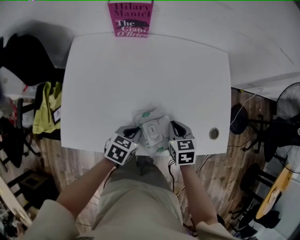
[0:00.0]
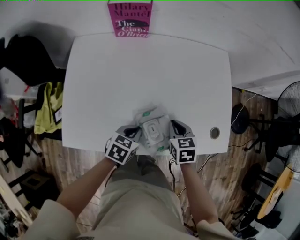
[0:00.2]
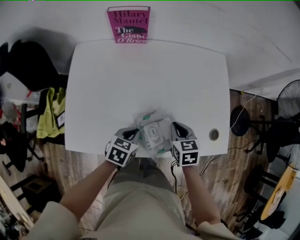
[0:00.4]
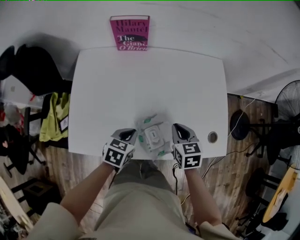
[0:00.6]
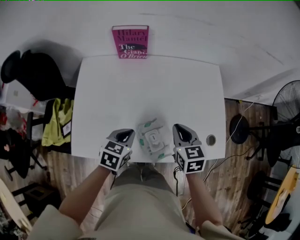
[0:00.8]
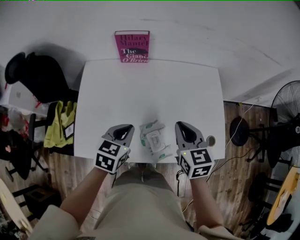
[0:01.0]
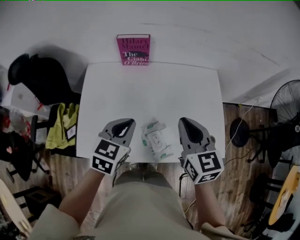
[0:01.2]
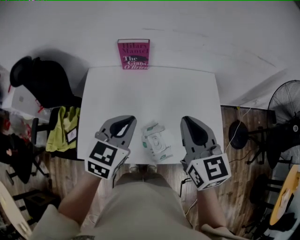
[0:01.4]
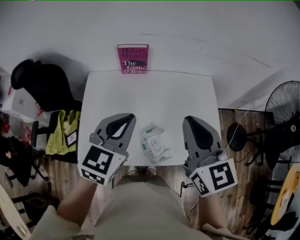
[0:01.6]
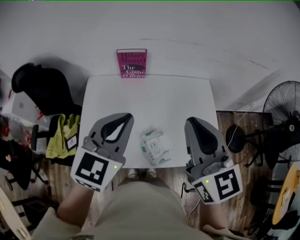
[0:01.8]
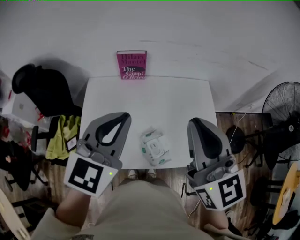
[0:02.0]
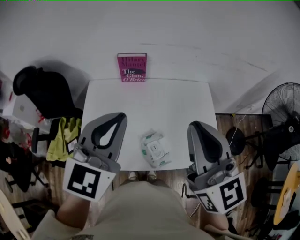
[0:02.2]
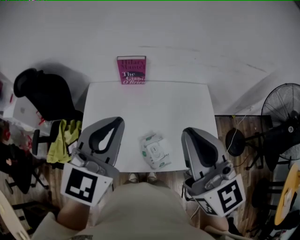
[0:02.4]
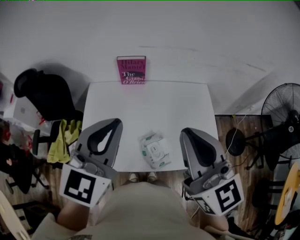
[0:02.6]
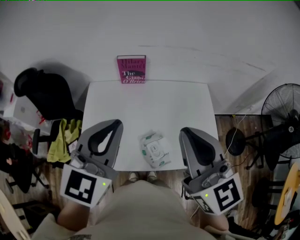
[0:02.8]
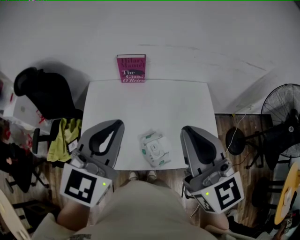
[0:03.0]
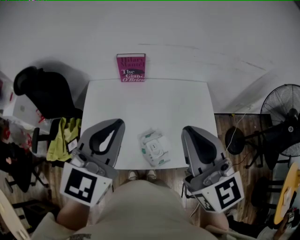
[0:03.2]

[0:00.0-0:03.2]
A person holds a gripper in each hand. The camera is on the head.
0:00.0 to 0:01.6: Both grippers move upward, roughly 35 cm. The left gripper tilts its fingers some 30 degrees upward. The right gripper points its fingers about 40 degrees further upward.
0:01.6 to 0:03.2: The grippers both shift upward by roughly 10 cm.

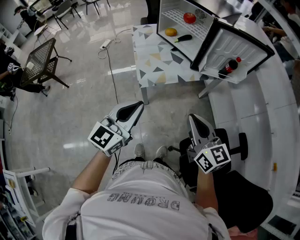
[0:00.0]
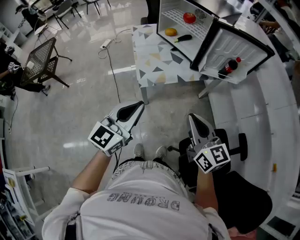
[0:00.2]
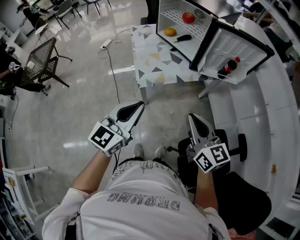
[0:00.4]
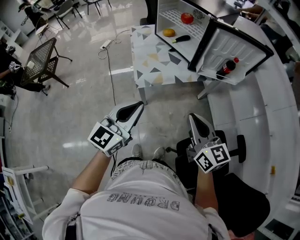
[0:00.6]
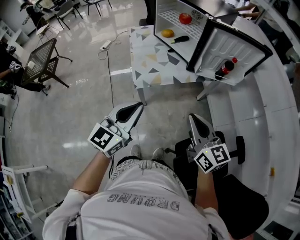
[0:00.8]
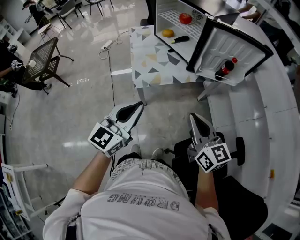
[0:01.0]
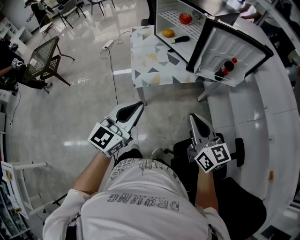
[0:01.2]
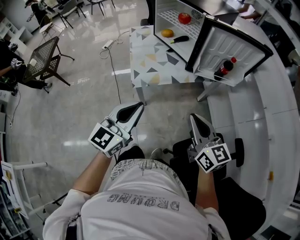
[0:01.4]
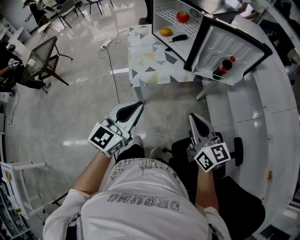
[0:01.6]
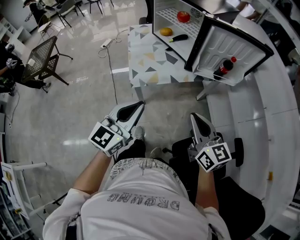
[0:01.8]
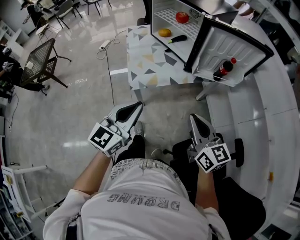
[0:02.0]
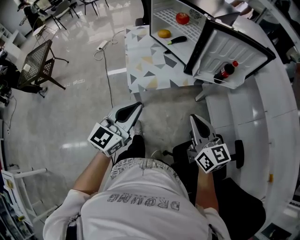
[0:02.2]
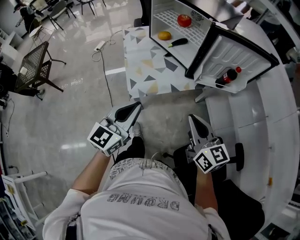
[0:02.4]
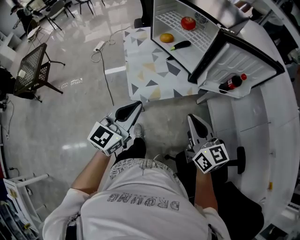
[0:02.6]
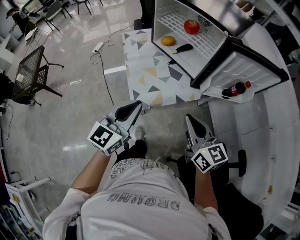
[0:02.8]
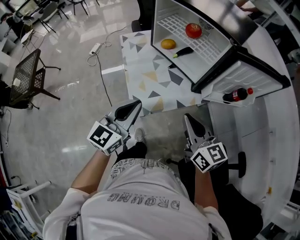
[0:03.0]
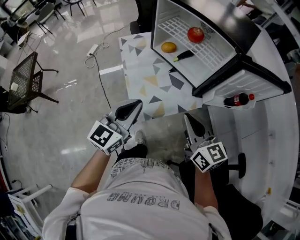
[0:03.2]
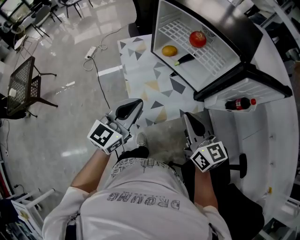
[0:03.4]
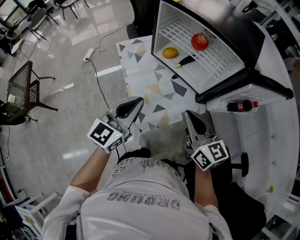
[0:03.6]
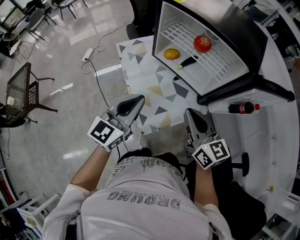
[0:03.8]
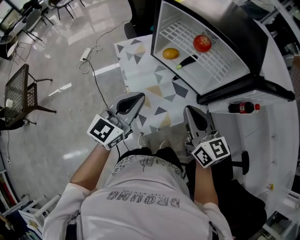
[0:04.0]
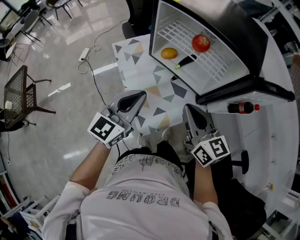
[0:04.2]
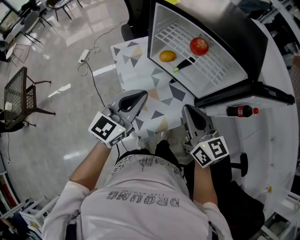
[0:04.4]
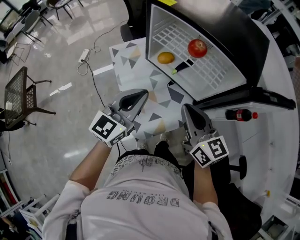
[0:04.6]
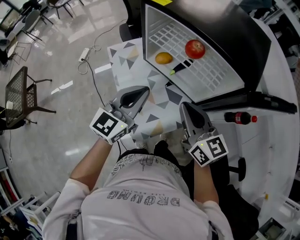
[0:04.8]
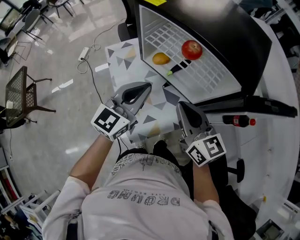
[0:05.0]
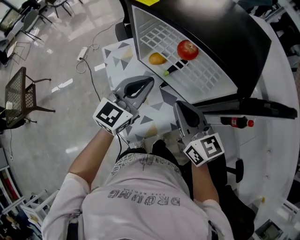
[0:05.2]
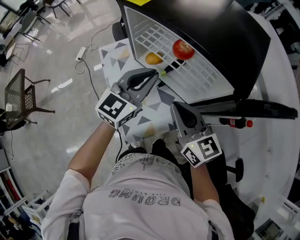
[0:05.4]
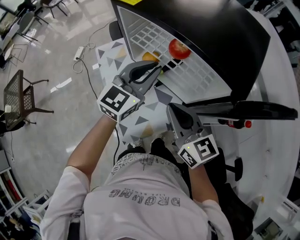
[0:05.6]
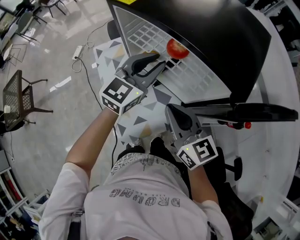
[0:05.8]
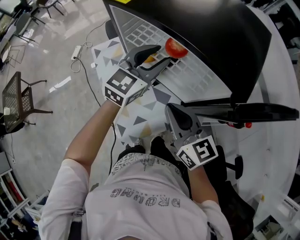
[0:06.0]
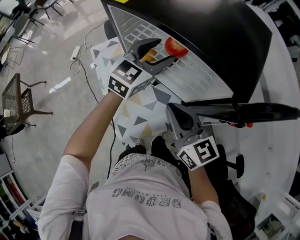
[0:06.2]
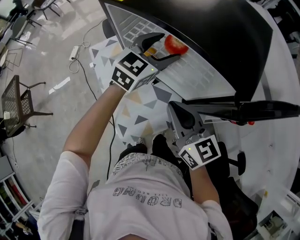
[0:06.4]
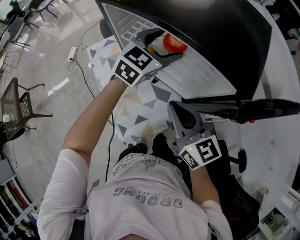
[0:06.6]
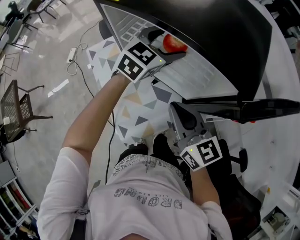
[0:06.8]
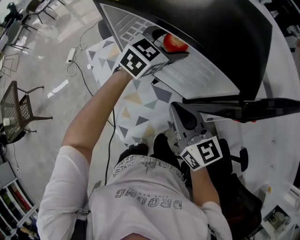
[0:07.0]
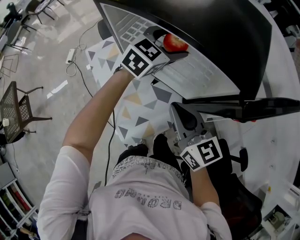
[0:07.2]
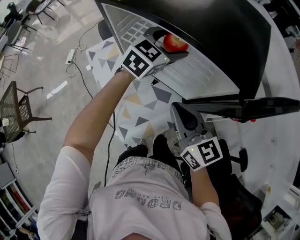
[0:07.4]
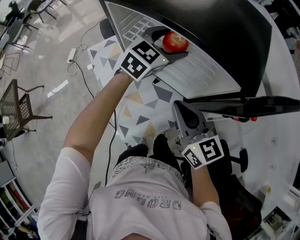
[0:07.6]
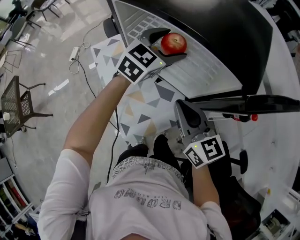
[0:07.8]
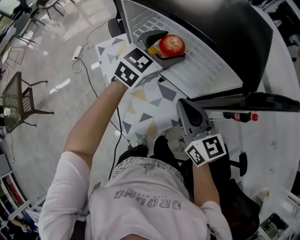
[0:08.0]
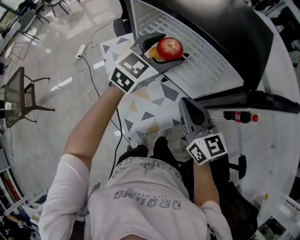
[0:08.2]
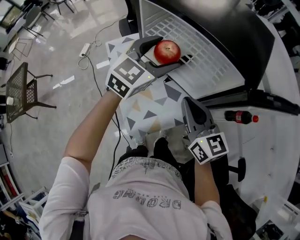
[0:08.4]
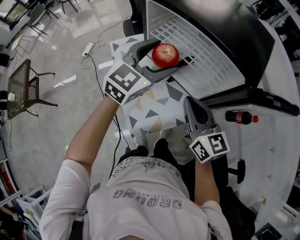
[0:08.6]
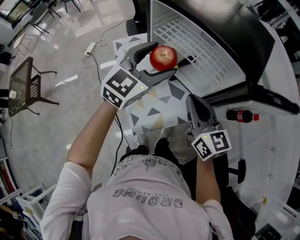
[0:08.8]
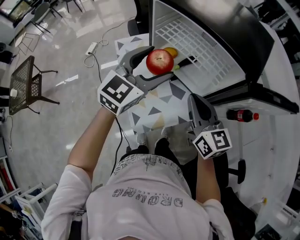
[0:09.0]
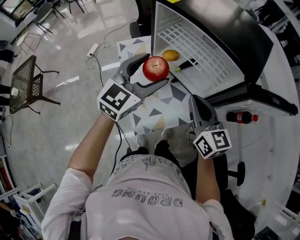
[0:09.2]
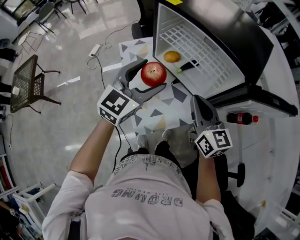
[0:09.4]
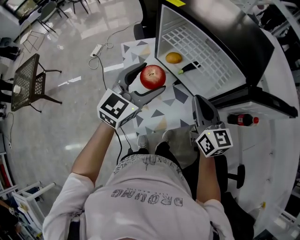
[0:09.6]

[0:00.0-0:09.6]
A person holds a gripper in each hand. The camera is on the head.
0:00.0 to 0:01.6: The grippers both shift to the right by about 5 cm.
0:01.6 to 0:03.2: Both grippers move forward and to the left, about 25 cm.
0:03.2 to 0:04.8: Both grippers move forward, about 15 cm.
0:04.8 to 0:06.4: The left gripper heads forward and to the right, covering approximately 25 cm, and opens its fingers.
0:06.4 to 0:08.0: The grippers move only a little.
0:08.0 to 0:09.6: The left gripper travels backward and to the left by roughly 20 cm.

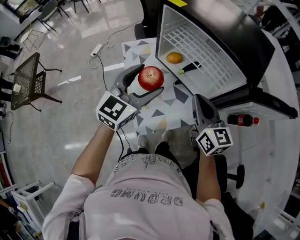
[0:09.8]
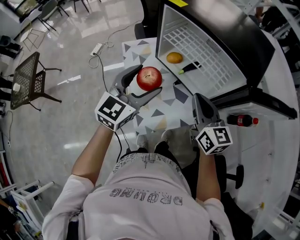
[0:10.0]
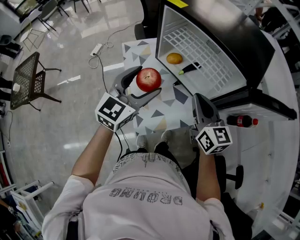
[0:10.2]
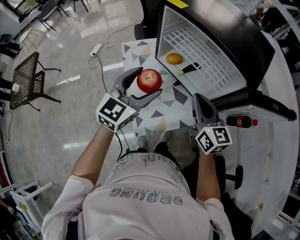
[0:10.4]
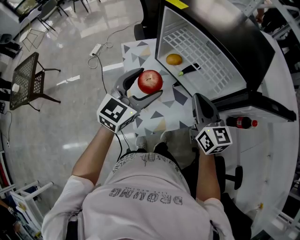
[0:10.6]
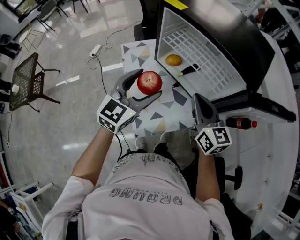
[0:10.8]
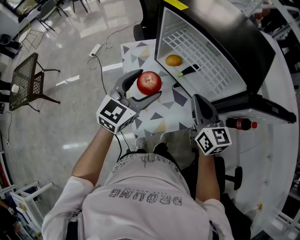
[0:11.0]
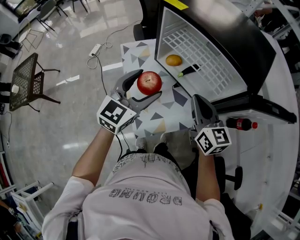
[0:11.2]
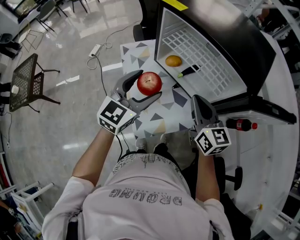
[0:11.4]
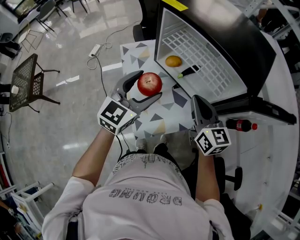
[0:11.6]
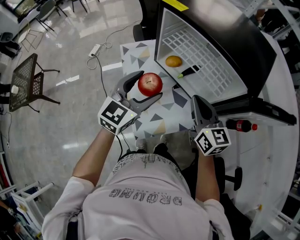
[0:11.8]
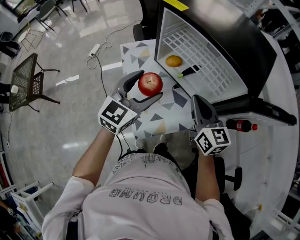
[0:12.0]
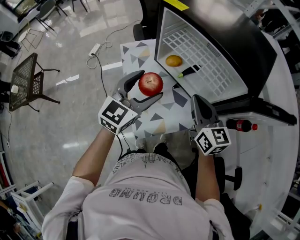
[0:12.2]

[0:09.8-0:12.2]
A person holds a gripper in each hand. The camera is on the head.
0:09.8 to 0:11.0: The grippers move only a little.
0:11.0 to 0:12.2: The two grippers keep their place.

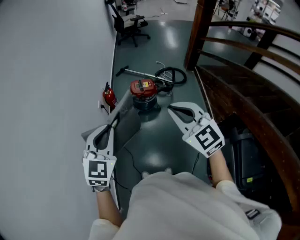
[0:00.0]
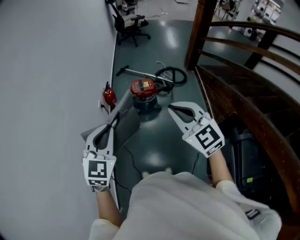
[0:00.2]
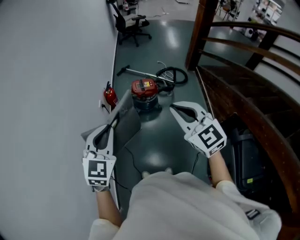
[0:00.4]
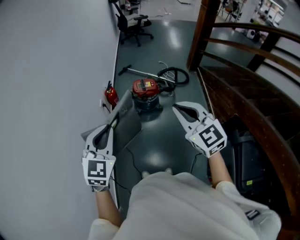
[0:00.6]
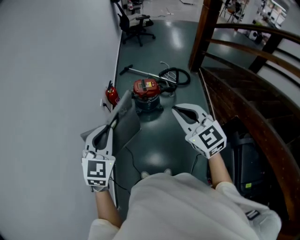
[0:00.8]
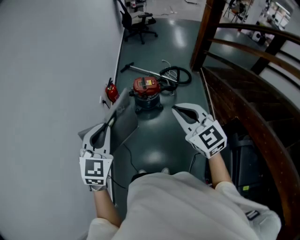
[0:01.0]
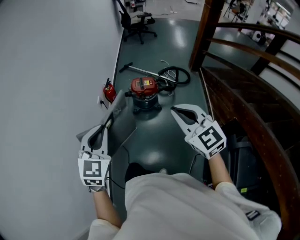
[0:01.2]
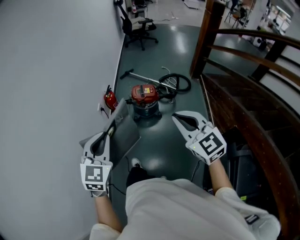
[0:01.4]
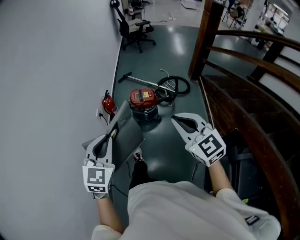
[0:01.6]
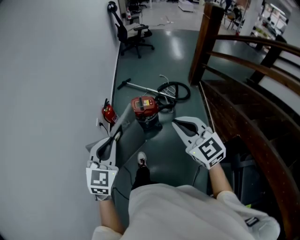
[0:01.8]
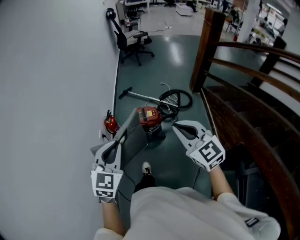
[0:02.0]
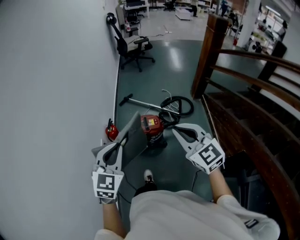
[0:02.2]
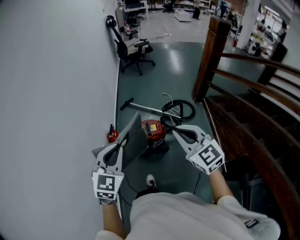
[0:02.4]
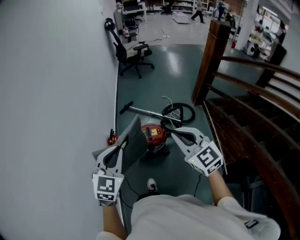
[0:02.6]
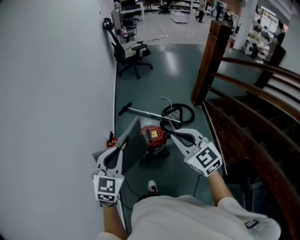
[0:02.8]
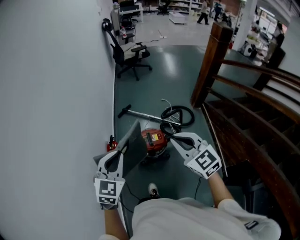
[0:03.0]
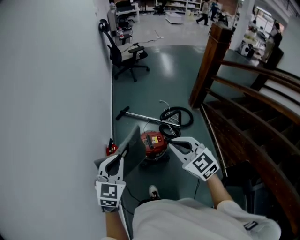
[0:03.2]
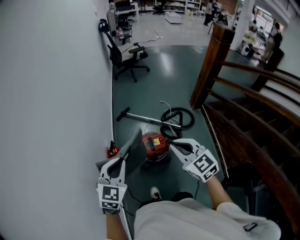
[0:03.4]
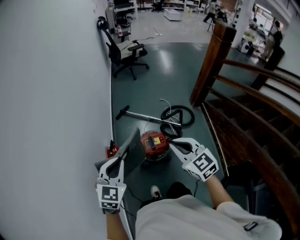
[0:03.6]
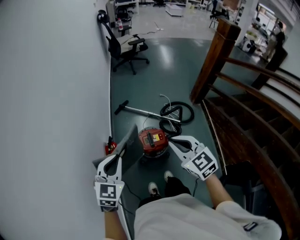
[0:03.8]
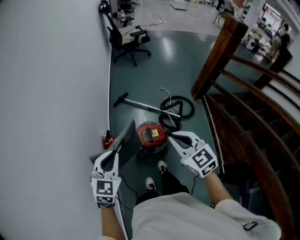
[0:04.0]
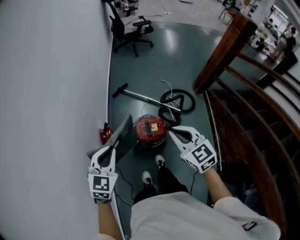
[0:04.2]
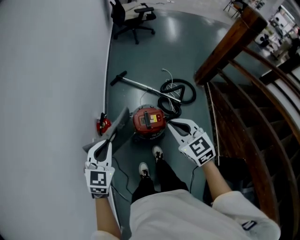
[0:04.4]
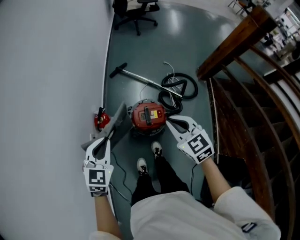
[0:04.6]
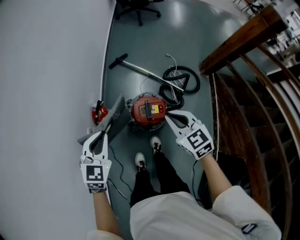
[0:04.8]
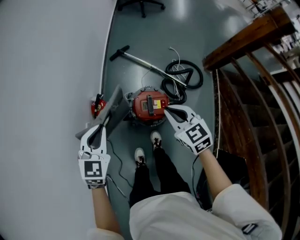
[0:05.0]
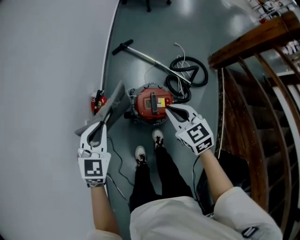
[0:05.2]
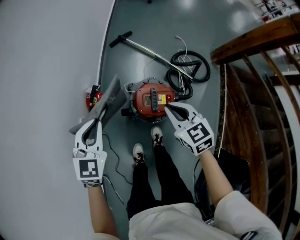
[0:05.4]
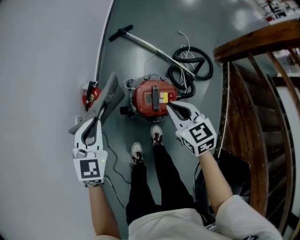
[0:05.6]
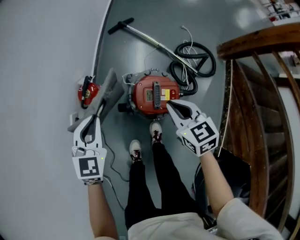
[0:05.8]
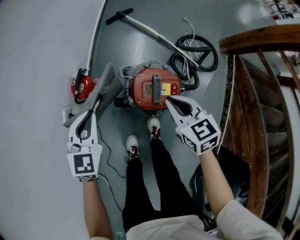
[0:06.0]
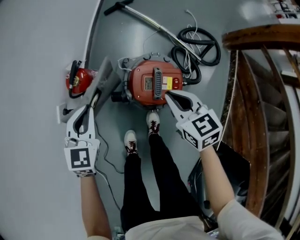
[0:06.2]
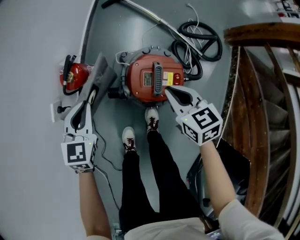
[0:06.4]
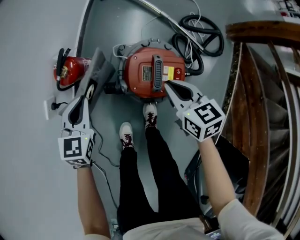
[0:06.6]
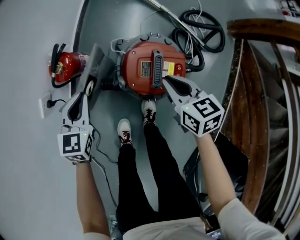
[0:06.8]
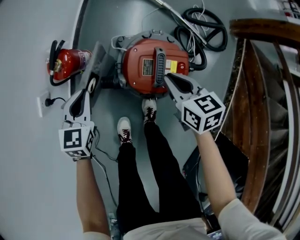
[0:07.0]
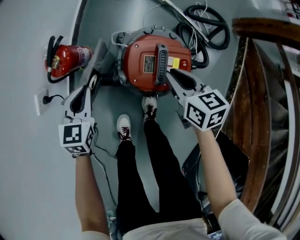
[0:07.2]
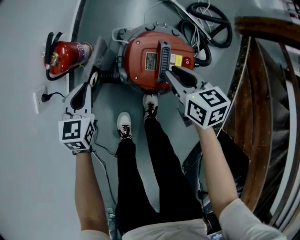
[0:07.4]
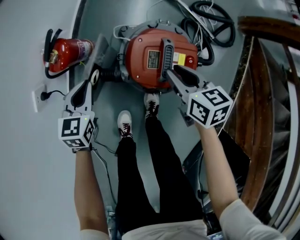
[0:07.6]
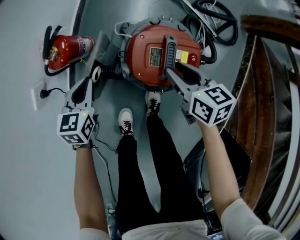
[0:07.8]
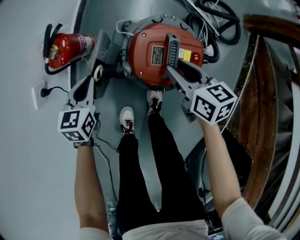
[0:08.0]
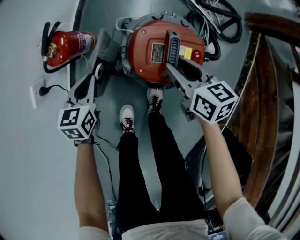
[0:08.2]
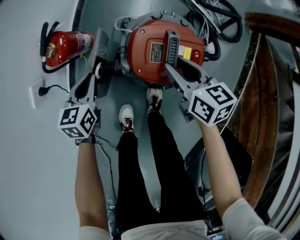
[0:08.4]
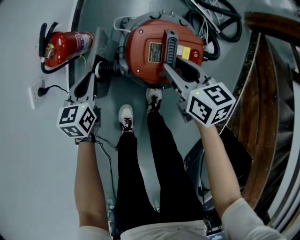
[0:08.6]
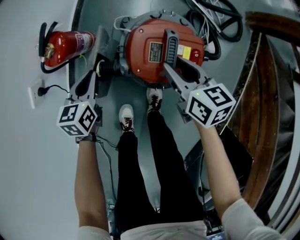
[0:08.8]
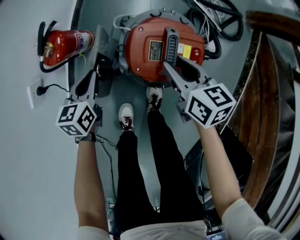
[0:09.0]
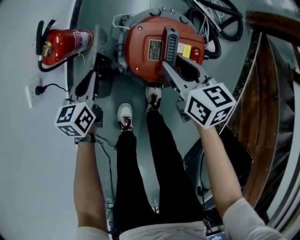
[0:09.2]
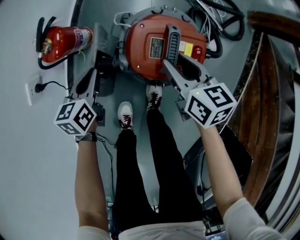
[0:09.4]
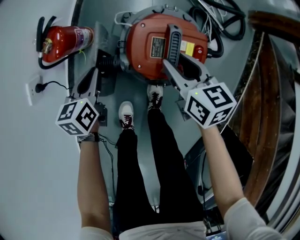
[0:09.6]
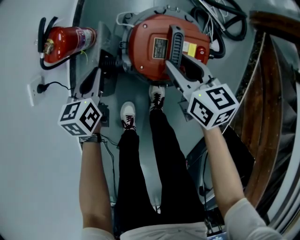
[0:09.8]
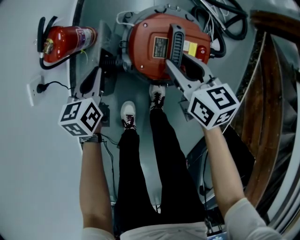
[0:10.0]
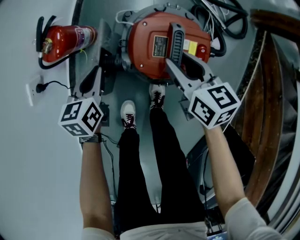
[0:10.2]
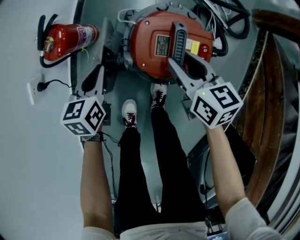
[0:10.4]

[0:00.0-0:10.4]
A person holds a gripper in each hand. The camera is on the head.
0:00.0 to 0:01.4: The right gripper goes about 10 cm to the right.
0:01.4 to 0:03.0: The grippers both shift forward by some 35 cm.
0:03.0 to 0:04.4: The left gripper heads downward and forward, covering approximately 20 cm. The right gripper heads forward and downward, covering some 20 cm.
0:04.4 to 0:06.0: The two grippers go some 30 cm downward.
0:06.0 to 0:07.4: Both grippers travel together downward, about 20 cm.
0:07.4 to 0:09.0: The left gripper ends up some 5 cm from where it was.
0:09.0 to 0:10.4: The grippers make only small movements.
